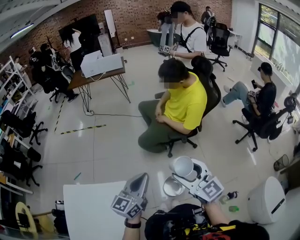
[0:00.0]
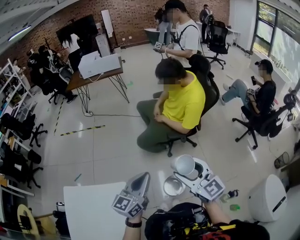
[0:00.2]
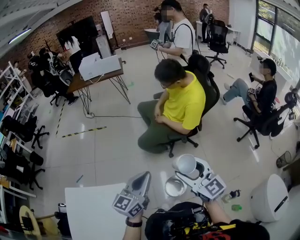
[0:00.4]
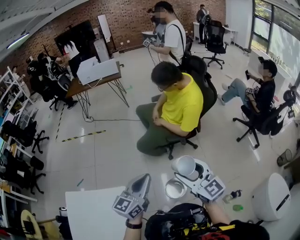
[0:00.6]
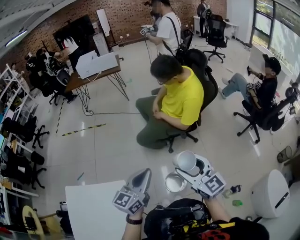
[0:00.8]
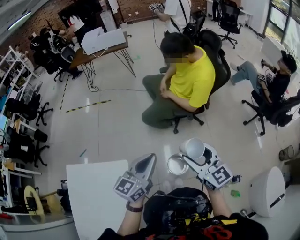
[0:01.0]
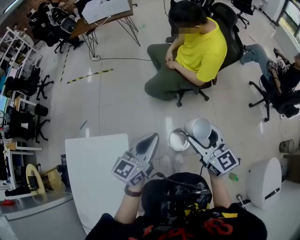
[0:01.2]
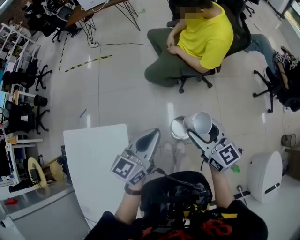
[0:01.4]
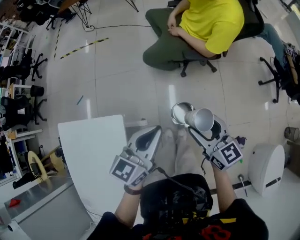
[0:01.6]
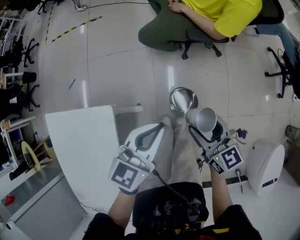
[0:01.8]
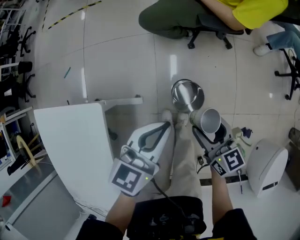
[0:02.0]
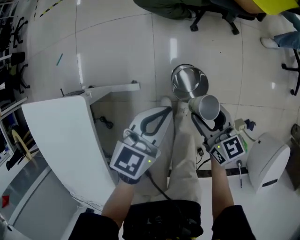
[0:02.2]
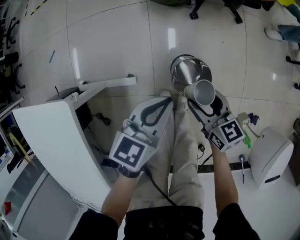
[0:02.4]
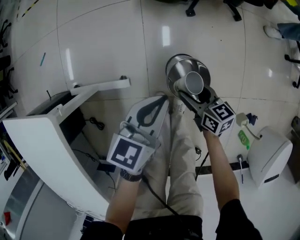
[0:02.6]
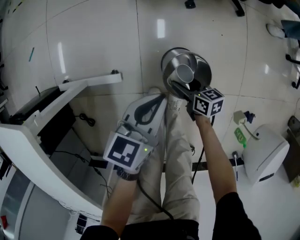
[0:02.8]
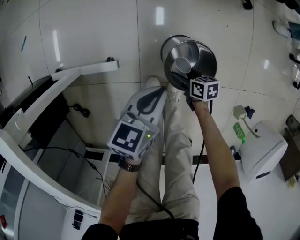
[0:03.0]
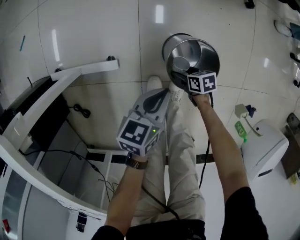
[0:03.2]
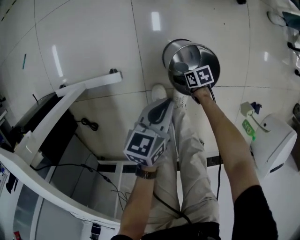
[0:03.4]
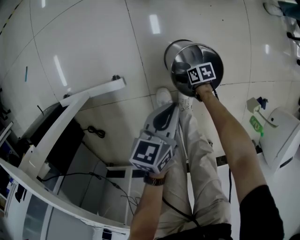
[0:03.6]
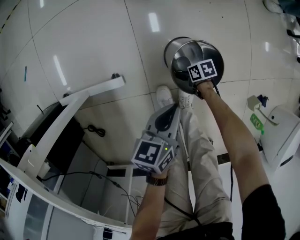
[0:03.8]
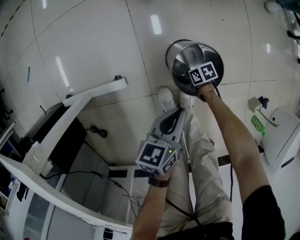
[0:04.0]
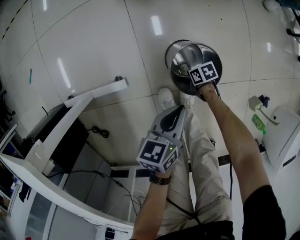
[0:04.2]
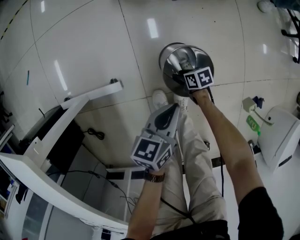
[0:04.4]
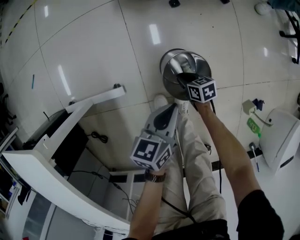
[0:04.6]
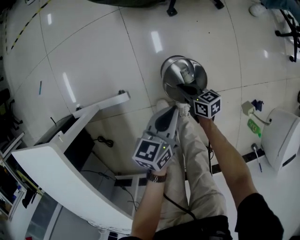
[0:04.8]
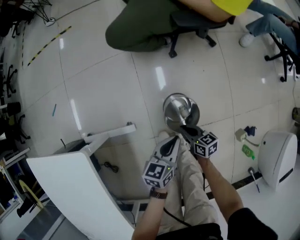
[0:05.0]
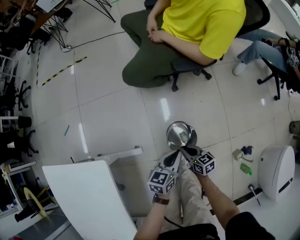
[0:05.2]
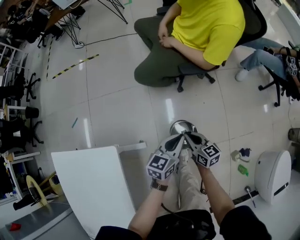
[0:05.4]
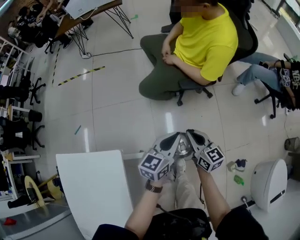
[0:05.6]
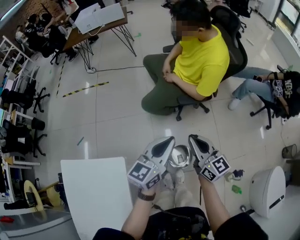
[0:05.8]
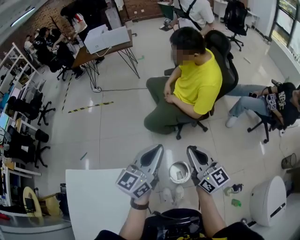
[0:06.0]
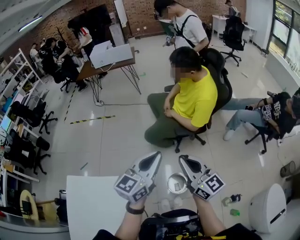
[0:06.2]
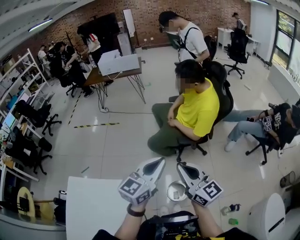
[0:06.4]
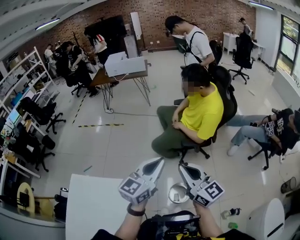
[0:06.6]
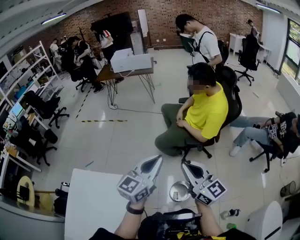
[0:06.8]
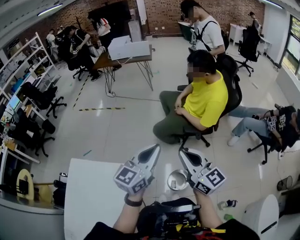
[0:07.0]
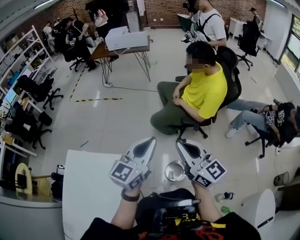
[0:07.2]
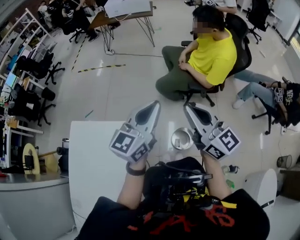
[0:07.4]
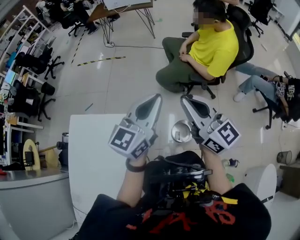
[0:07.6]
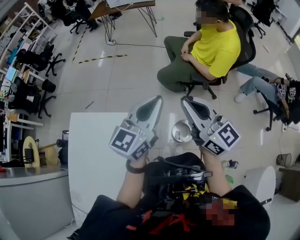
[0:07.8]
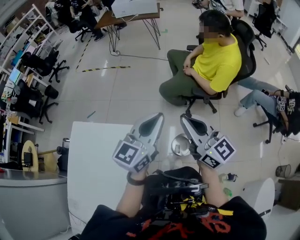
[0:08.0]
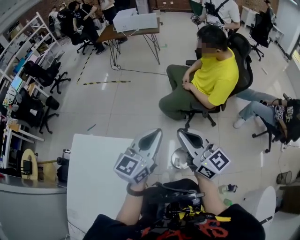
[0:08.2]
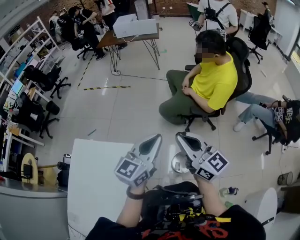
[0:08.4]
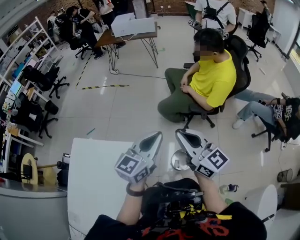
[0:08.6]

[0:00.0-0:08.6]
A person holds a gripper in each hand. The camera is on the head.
0:00.0 to 0:01.4: The right gripper moves downward, about 10 cm. Meanwhile the left gripper changes place by about 5 cm.
0:01.4 to 0:02.8: The grippers both shift downward by approximately 60 cm. The left gripper rotates approximately 30 degrees. Meanwhile the right gripper swivels about 50 degrees.
0:02.8 to 0:04.4: The right gripper moves downward, approximately 15 cm, and swivels about 20 degrees. Meanwhile the left gripper goes some 10 cm downward.
0:04.4 to 0:05.8: The two grippers go approximately 70 cm upward. The right gripper angles its fingers upward, by some 50 degrees, and closes its fingers; the left gripper swivels approximately 40 degrees.
0:05.8 to 0:07.2: The grippers both shift upward, backward and to the left by about 20 cm. The right gripper turns by approximately 20 degrees.
0:07.2 to 0:08.6: The grippers stay close to where they were, moving slightly.

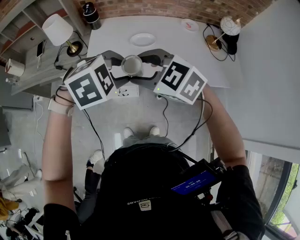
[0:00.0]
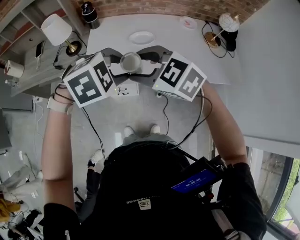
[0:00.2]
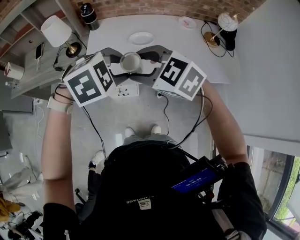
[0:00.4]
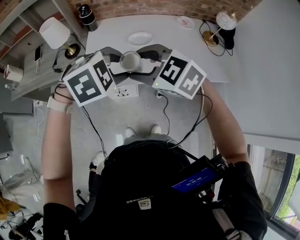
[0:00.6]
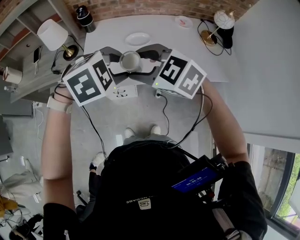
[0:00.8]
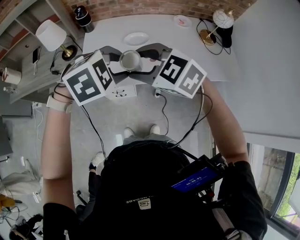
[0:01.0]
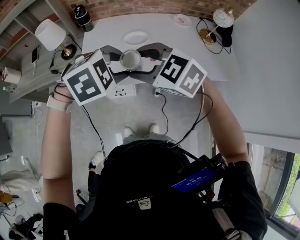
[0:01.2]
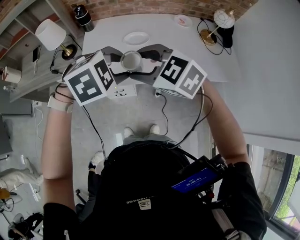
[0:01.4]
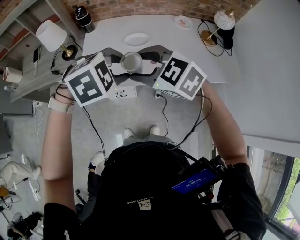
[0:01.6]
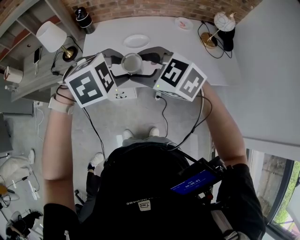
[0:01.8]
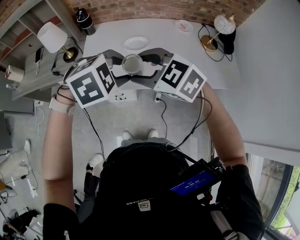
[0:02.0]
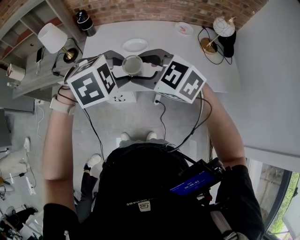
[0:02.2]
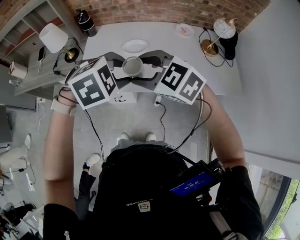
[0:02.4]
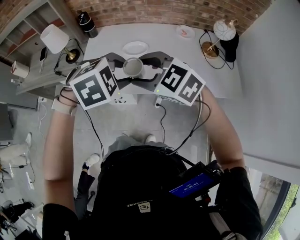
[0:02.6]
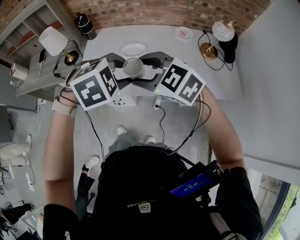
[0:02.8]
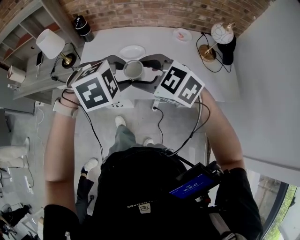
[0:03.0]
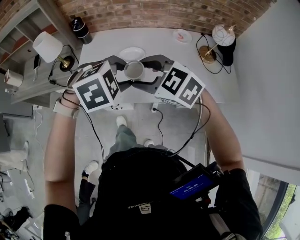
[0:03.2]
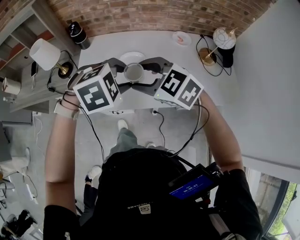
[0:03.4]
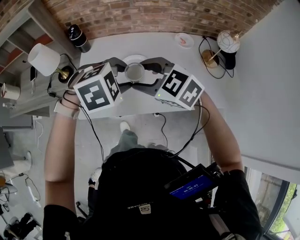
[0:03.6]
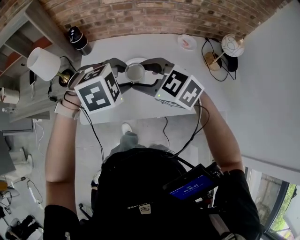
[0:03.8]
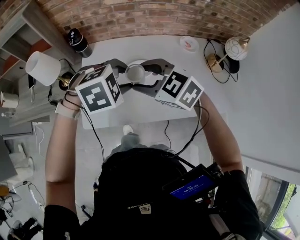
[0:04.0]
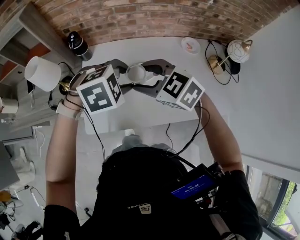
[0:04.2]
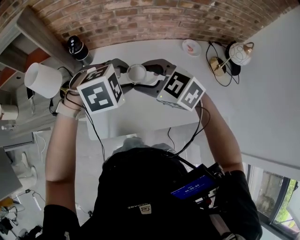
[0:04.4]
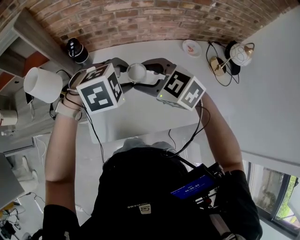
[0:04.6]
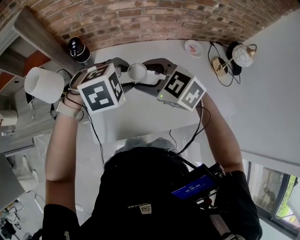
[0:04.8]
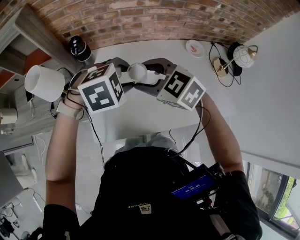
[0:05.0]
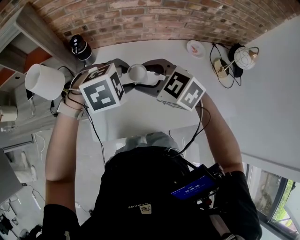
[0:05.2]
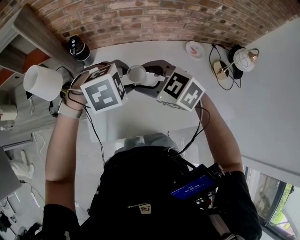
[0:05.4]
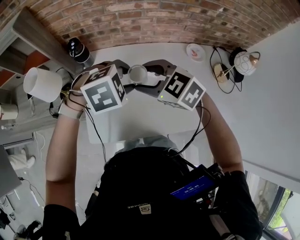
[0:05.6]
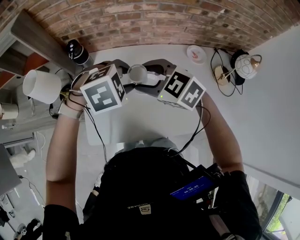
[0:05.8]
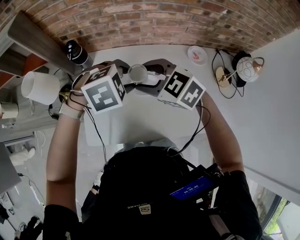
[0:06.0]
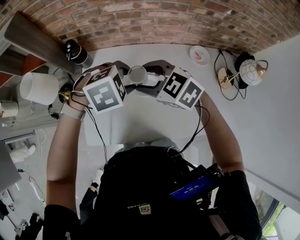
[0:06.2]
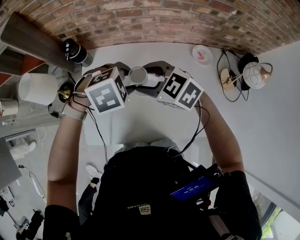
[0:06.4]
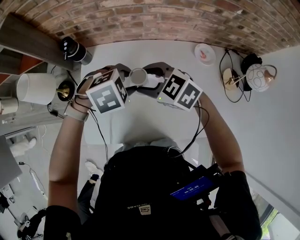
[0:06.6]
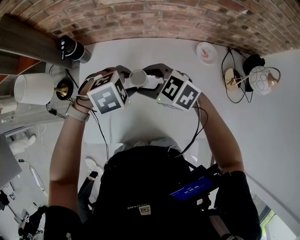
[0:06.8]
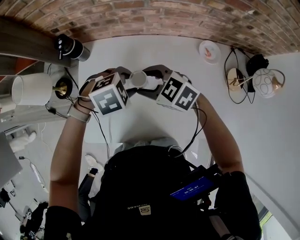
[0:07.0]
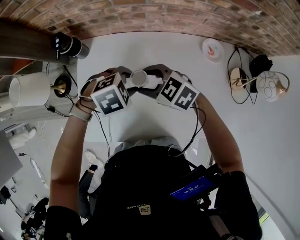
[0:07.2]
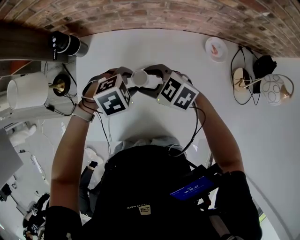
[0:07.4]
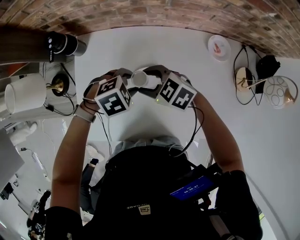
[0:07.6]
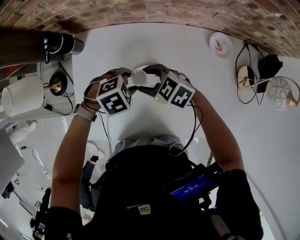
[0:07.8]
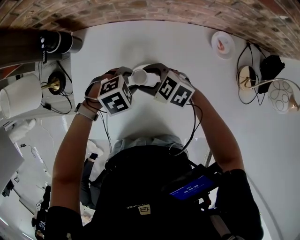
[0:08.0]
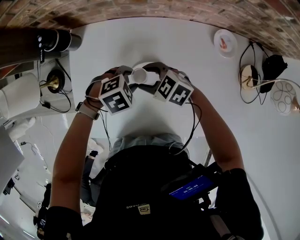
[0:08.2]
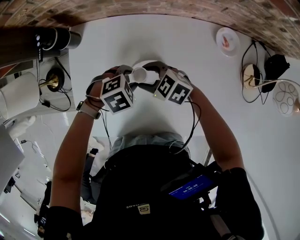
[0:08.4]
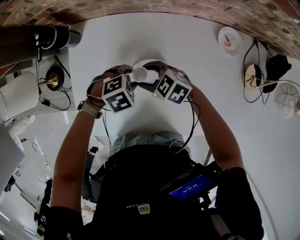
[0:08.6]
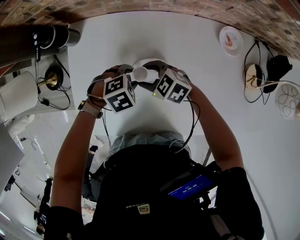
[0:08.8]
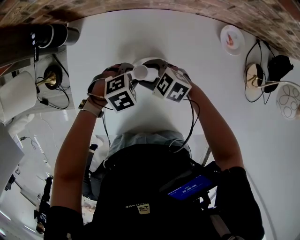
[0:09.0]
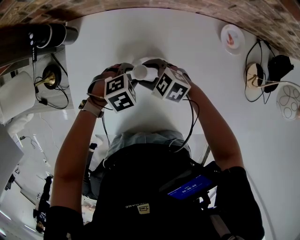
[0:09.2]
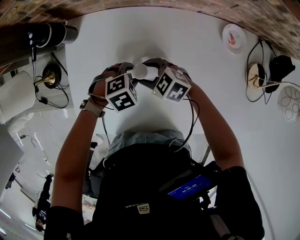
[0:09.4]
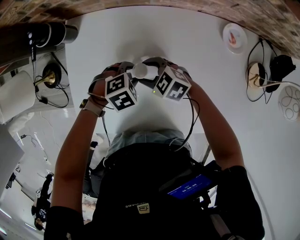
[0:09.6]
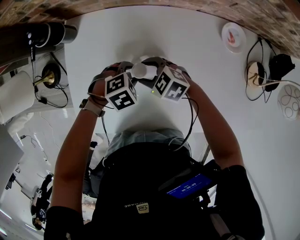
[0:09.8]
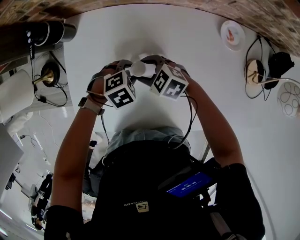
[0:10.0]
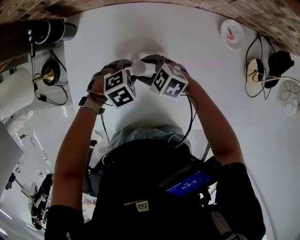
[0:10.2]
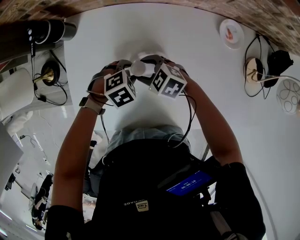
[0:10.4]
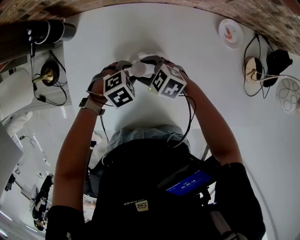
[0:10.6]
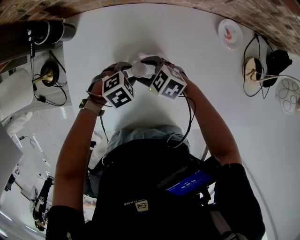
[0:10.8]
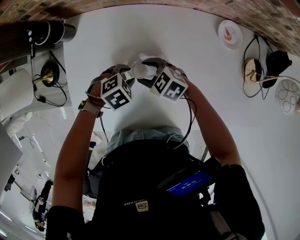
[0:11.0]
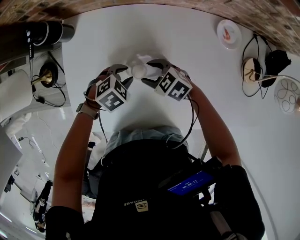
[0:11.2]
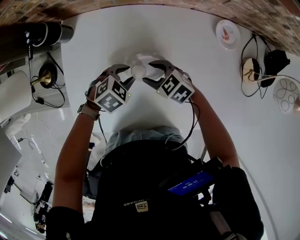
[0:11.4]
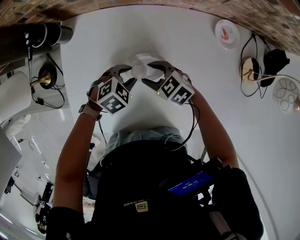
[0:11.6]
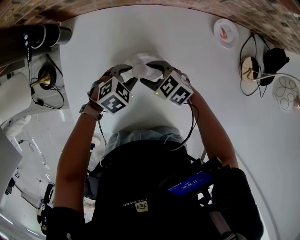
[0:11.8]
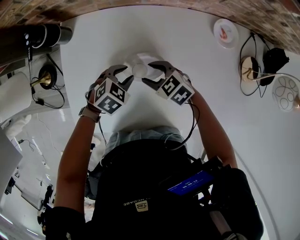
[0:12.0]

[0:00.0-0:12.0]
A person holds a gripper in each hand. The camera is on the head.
0:00.0 to 0:01.6: There are only small adjustments of the grippers.
0:01.6 to 0:03.0: The grippers both shift to the right by roughly 10 cm.
0:03.0 to 0:04.4: The two grippers go some 25 cm forward and to the left.
0:04.4 to 0:06.0: The two grippers go about 5 cm forward.
0:06.0 to 0:07.6: Both grippers move downward, some 20 cm.
0:07.6 to 0:09.0: The two grippers go roughly 10 cm downward.
0:09.0 to 0:10.4: The grippers make only small movements.
0:10.4 to 0:12.0: The grippers move only a little.

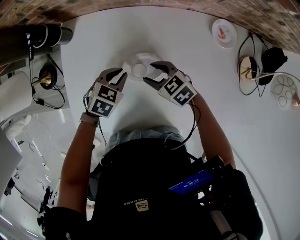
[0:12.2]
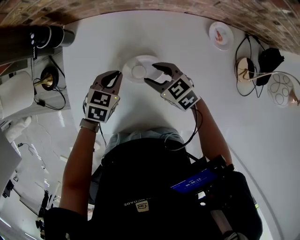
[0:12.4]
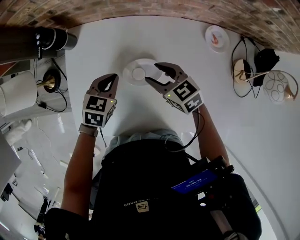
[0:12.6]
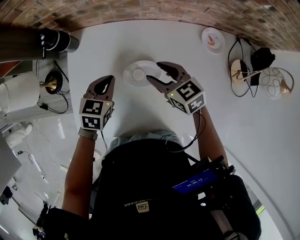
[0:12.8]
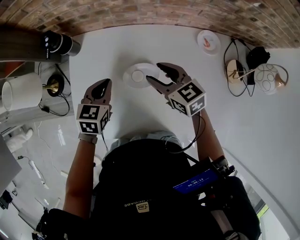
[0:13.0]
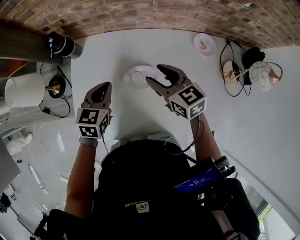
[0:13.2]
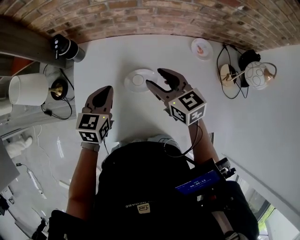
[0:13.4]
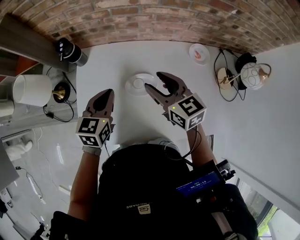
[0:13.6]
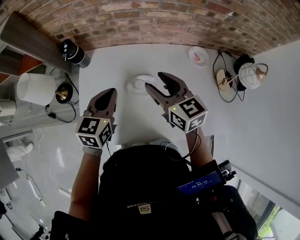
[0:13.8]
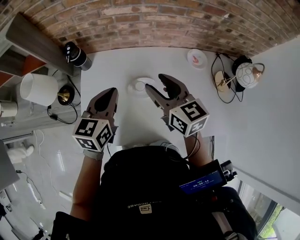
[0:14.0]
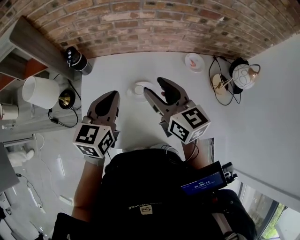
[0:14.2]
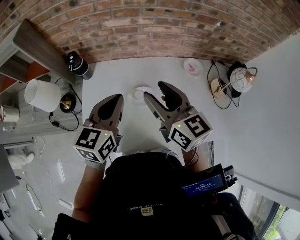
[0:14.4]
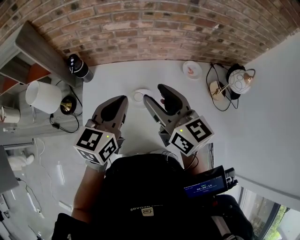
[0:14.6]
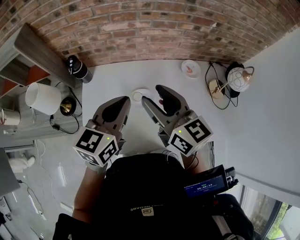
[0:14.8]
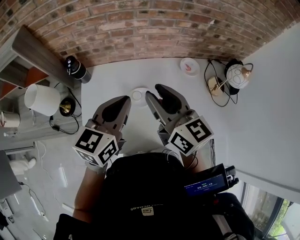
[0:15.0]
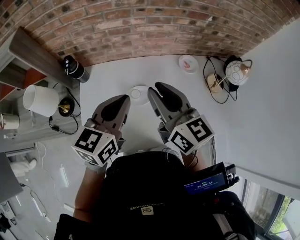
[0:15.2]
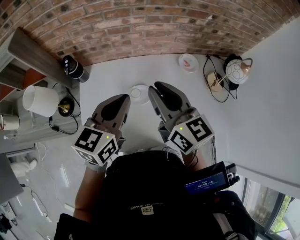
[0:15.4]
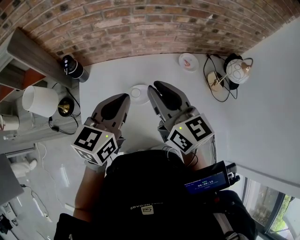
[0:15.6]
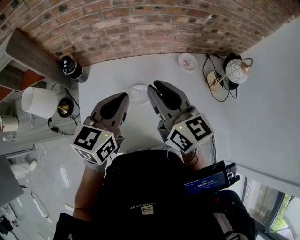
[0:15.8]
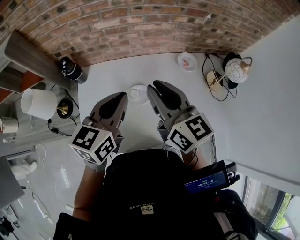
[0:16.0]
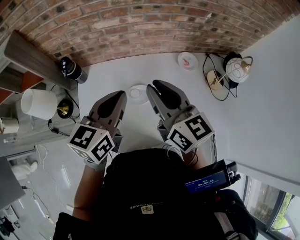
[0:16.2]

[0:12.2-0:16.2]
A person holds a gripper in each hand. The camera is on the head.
0:12.2 to 0:13.6: The two grippers go about 20 cm upward. The left gripper changes its angle by some 40 degrees. Meanwhile the right gripper turns by some 40 degrees.
0:13.6 to 0:14.8: The right gripper goes about 15 cm upward and backward. Meanwhile the left gripper heads upward, covering about 15 cm.
0:14.8 to 0:16.2: The right gripper closes.
